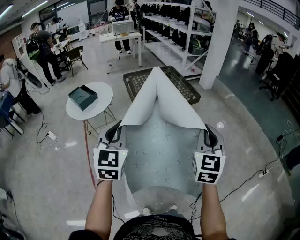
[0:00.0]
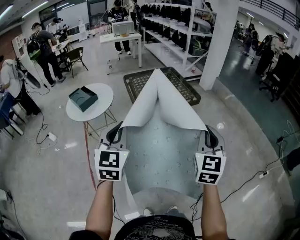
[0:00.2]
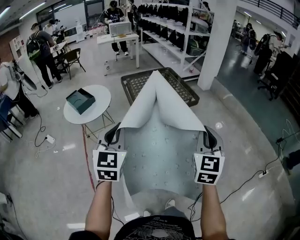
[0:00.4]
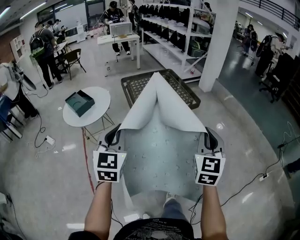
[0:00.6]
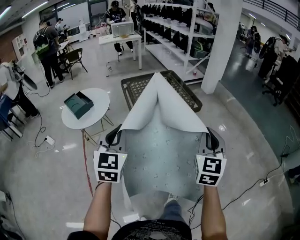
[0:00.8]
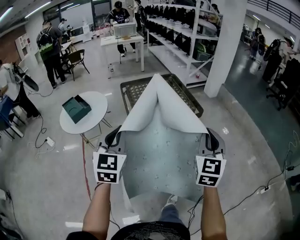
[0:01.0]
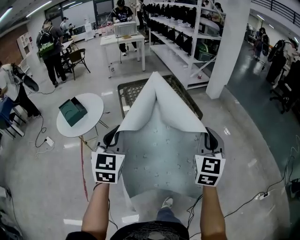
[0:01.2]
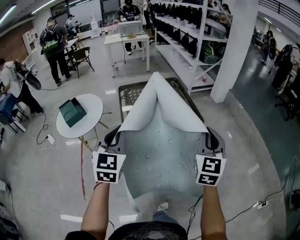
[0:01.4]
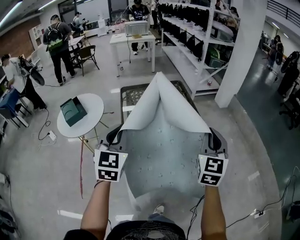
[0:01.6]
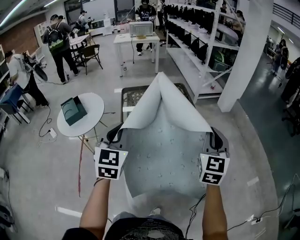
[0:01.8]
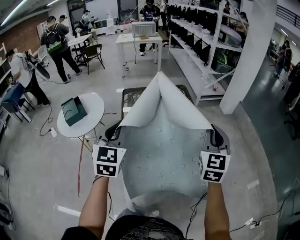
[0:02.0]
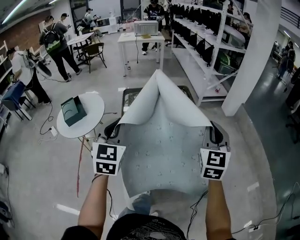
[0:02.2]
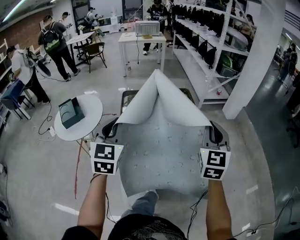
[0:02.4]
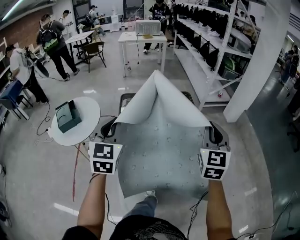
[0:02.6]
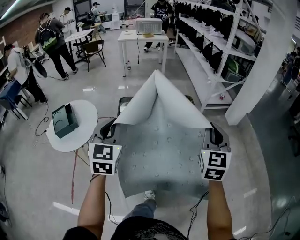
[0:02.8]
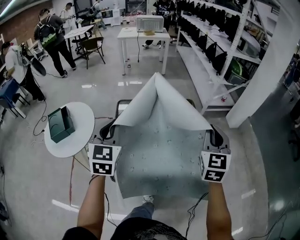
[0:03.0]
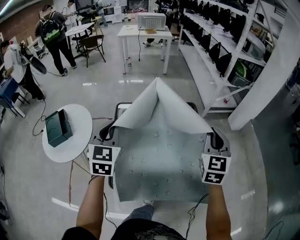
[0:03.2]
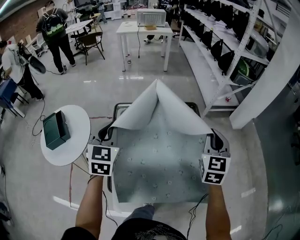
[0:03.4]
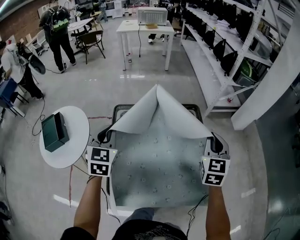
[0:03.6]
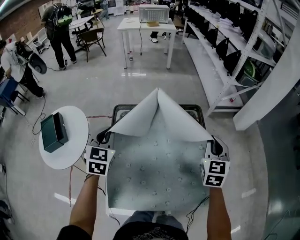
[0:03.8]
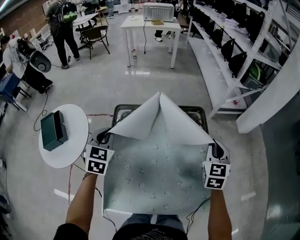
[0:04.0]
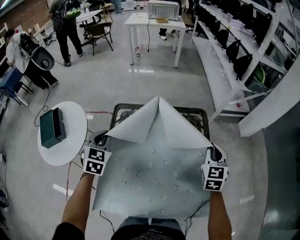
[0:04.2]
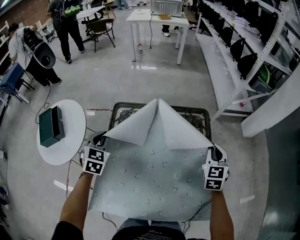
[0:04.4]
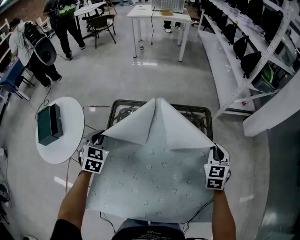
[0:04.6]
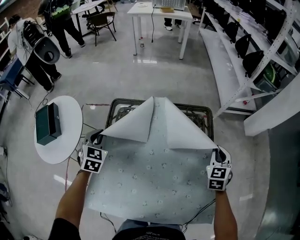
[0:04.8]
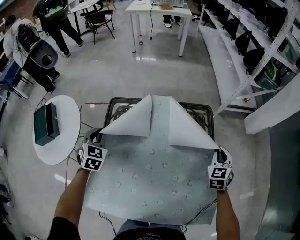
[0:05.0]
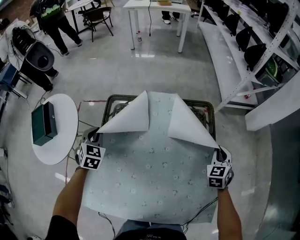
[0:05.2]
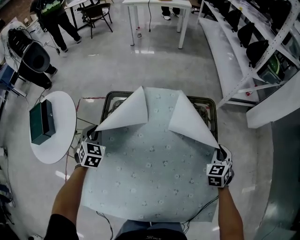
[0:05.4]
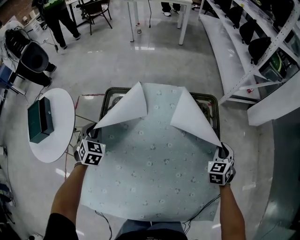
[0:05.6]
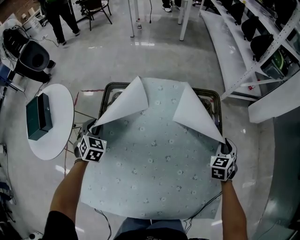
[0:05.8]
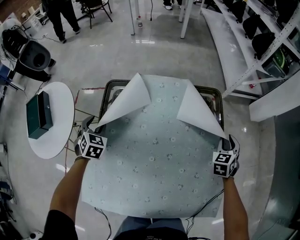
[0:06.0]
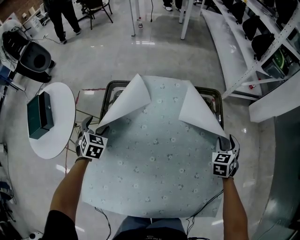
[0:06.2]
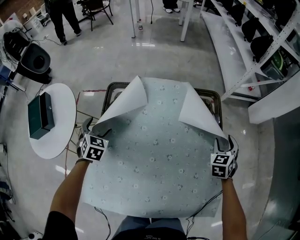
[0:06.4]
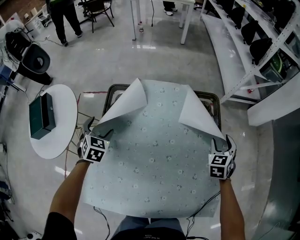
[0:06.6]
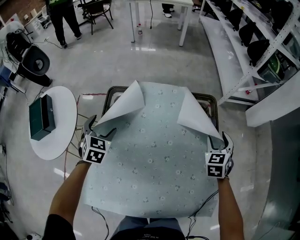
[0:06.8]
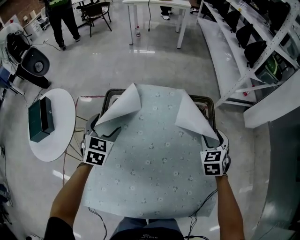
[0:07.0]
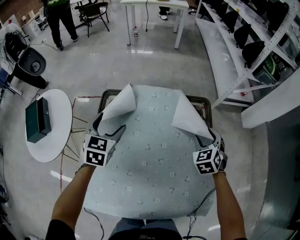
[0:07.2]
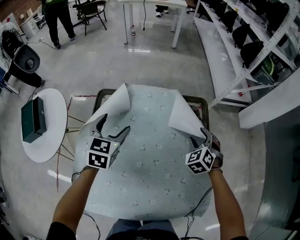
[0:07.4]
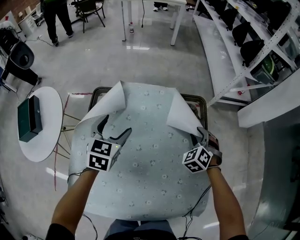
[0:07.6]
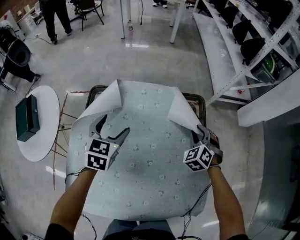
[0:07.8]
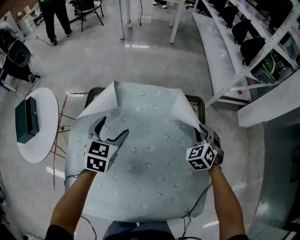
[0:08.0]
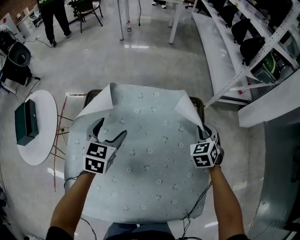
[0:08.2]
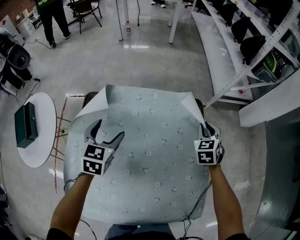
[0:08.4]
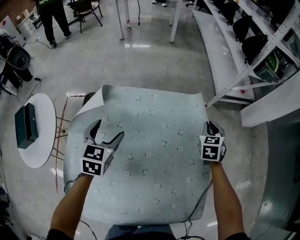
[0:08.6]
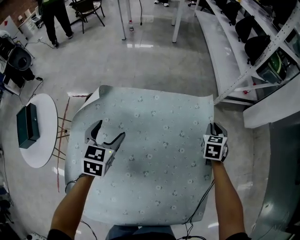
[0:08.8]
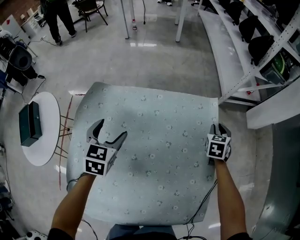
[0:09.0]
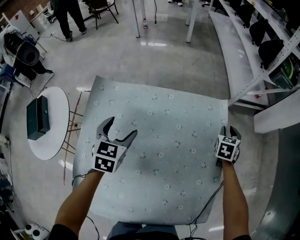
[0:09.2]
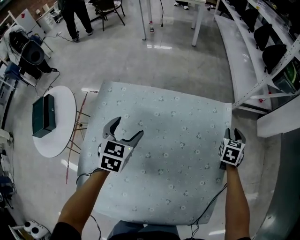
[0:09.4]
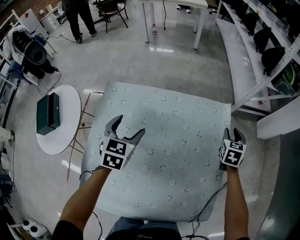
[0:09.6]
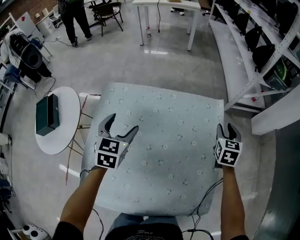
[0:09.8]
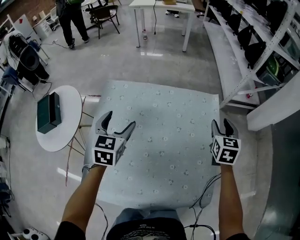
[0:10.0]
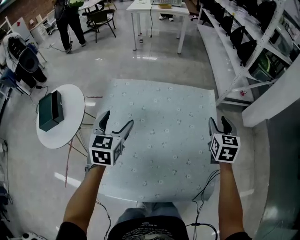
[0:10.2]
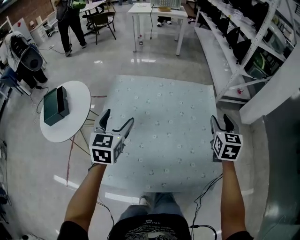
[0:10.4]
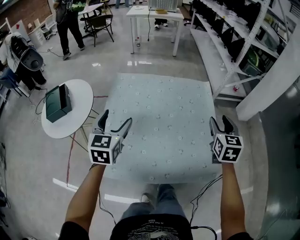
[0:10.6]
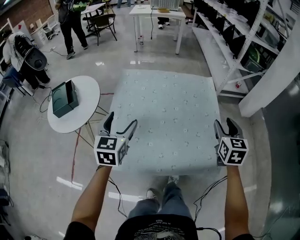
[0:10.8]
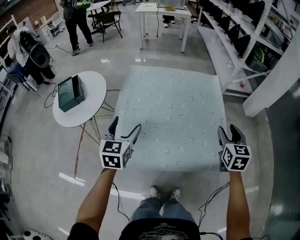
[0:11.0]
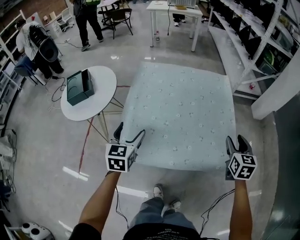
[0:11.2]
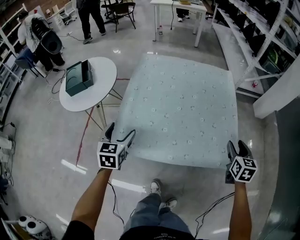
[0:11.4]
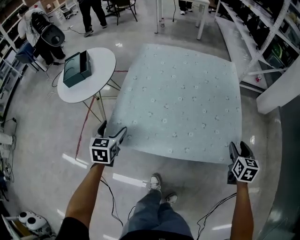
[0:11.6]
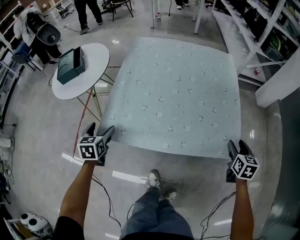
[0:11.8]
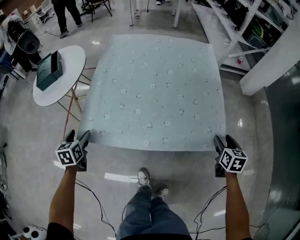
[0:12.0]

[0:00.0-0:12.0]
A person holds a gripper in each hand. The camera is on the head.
0:00.0 to 0:01.6: The grippers both shift forward by roughly 30 cm.
0:01.6 to 0:03.0: The grippers both shift forward by about 35 cm.
0:03.0 to 0:04.4: The left gripper is displaced downward and forward by about 25 cm, and changes its angle by approximately 20 degrees. The right gripper travels forward and downward by some 30 cm.
0:04.4 to 0:06.0: The left gripper shifts some 15 cm downward, and opens up. The right gripper moves downward and to the right, some 15 cm, swivels some 20 degrees, and opens.
0:06.0 to 0:07.6: The right gripper goes some 10 cm to the left, and turns by approximately 30 degrees. Meanwhile the left gripper goes some 20 cm to the right and upward, rotates approximately 30 degrees, and opens its fingers.
0:07.6 to 0:09.0: The right gripper travels forward and to the right by some 15 cm, and twists some 50 degrees clockwise, seen from behind.
0:09.0 to 0:10.4: Both grippers move backward and upward, some 30 cm. The right gripper changes its angle by roughly 20 degrees, and opens its fingers.
0:10.4 to 0:12.0: The right gripper heads backward and downward, covering approximately 35 cm, and turns by roughly 20 degrees. The left gripper heads backward, downward and to the left, covering approximately 40 cm, and changes its angle by some 30 degrees.

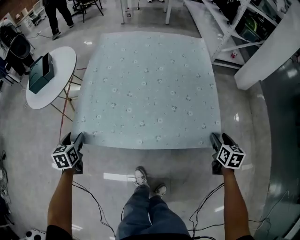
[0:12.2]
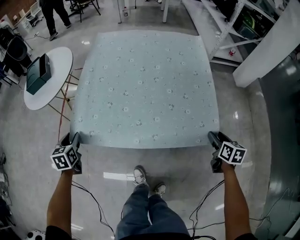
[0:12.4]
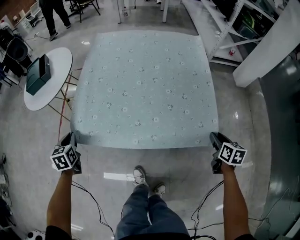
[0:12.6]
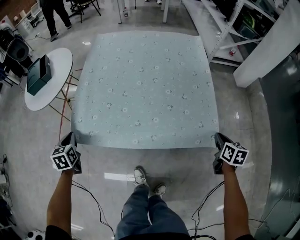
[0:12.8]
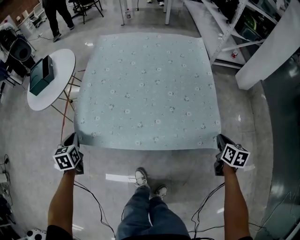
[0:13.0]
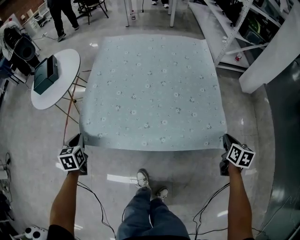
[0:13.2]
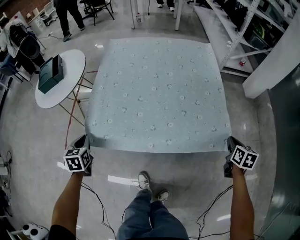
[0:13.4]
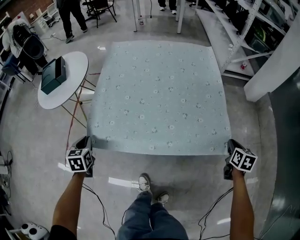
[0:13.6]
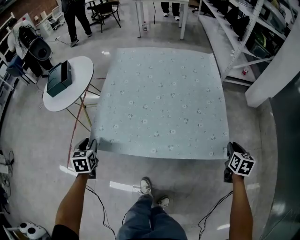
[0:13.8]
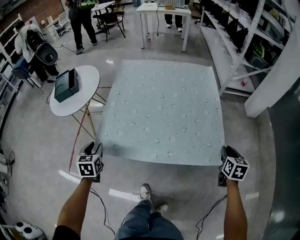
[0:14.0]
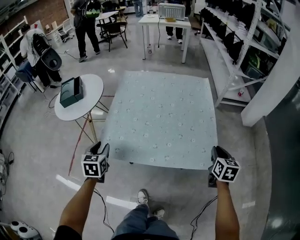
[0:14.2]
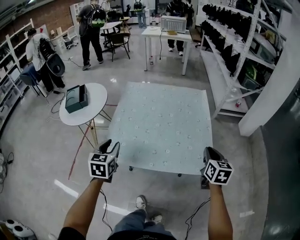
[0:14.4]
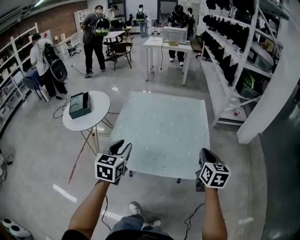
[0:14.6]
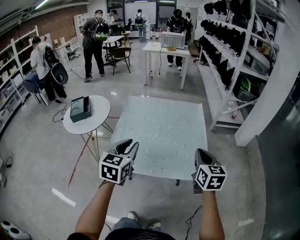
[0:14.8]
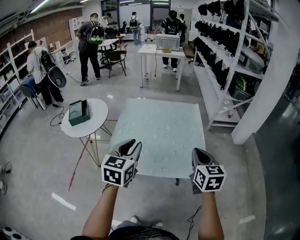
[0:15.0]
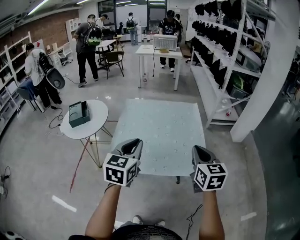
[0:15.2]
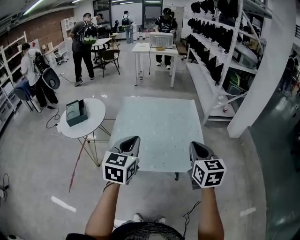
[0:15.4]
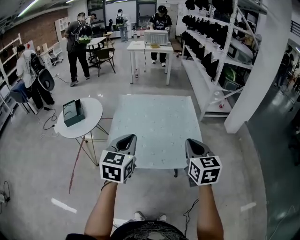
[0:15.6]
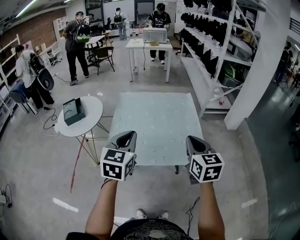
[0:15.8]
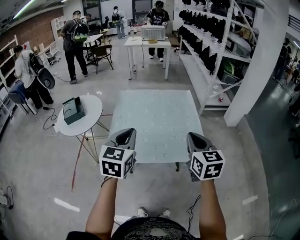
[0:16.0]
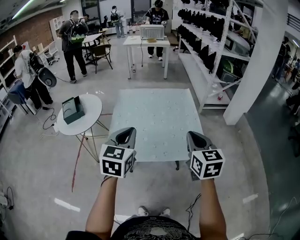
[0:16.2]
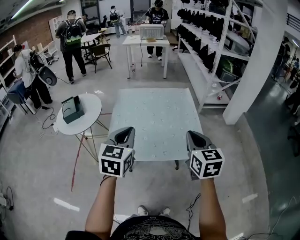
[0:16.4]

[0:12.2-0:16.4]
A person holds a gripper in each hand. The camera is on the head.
0:12.2 to 0:13.6: The right gripper shifts by some 5 cm, and closes up. The left gripper closes.
0:13.6 to 0:15.0: The left gripper heads upward and to the right, covering roughly 40 cm, and swivels approximately 40 degrees; the right gripper shifts about 40 cm upward and to the left, and rotates some 30 degrees.
0:15.0 to 0:16.4: The right gripper goes about 10 cm backward and to the left; the left gripper moves about 5 cm.

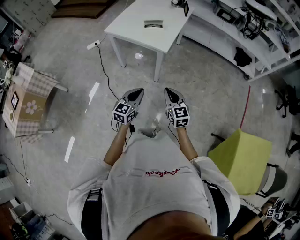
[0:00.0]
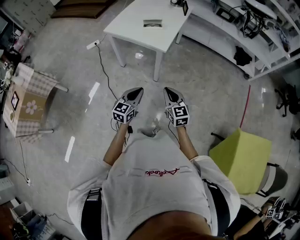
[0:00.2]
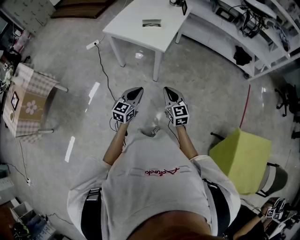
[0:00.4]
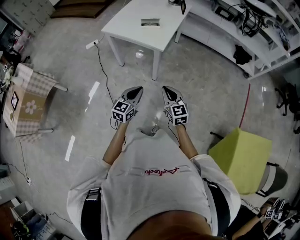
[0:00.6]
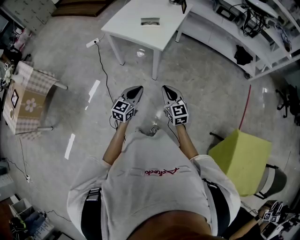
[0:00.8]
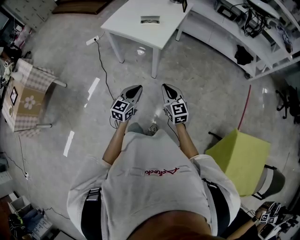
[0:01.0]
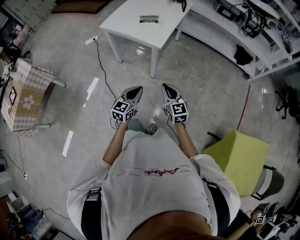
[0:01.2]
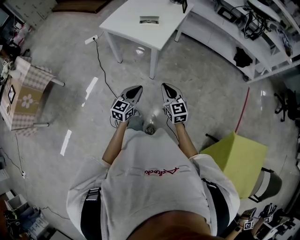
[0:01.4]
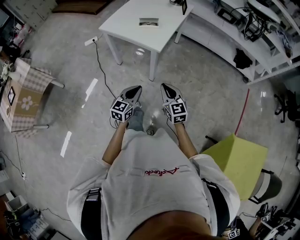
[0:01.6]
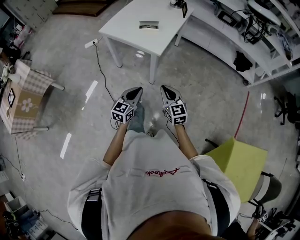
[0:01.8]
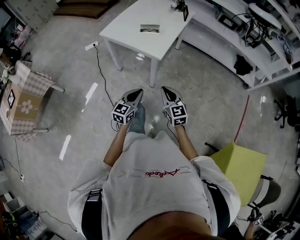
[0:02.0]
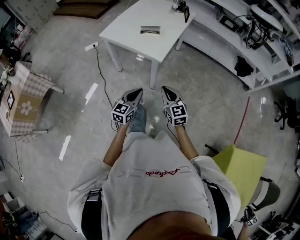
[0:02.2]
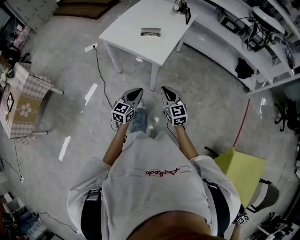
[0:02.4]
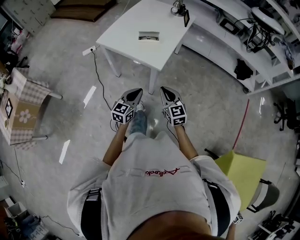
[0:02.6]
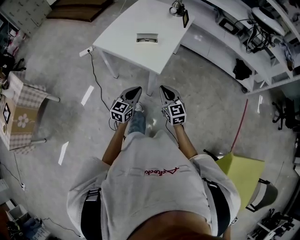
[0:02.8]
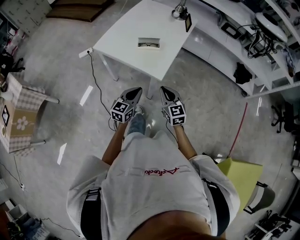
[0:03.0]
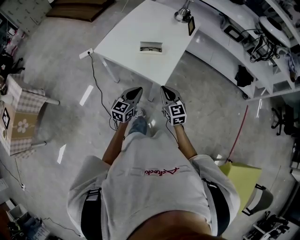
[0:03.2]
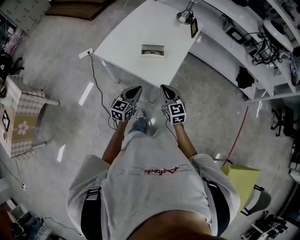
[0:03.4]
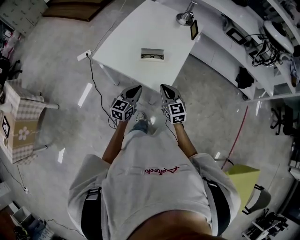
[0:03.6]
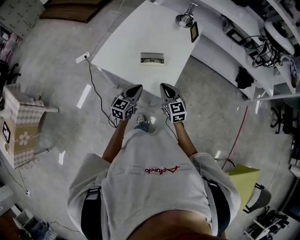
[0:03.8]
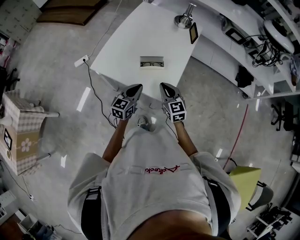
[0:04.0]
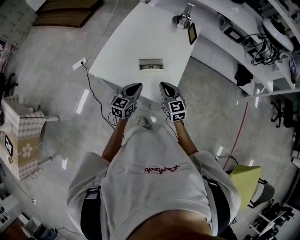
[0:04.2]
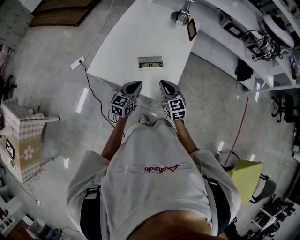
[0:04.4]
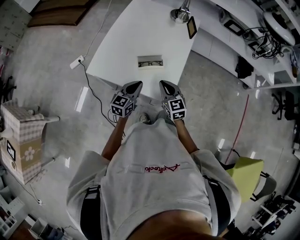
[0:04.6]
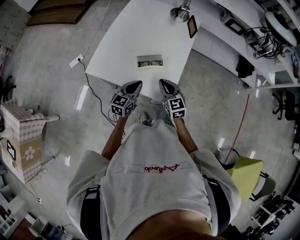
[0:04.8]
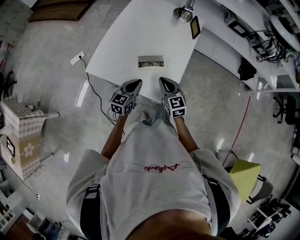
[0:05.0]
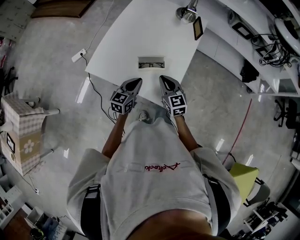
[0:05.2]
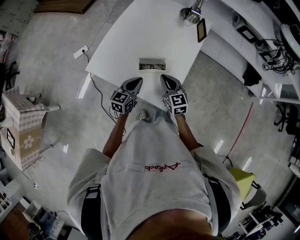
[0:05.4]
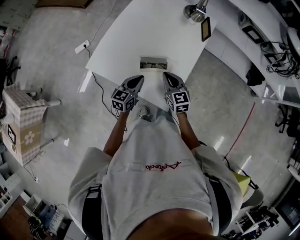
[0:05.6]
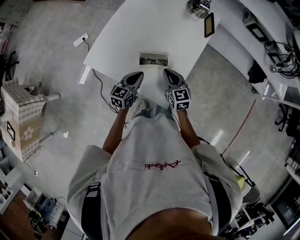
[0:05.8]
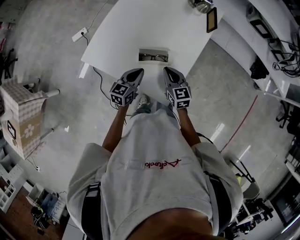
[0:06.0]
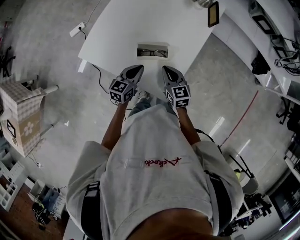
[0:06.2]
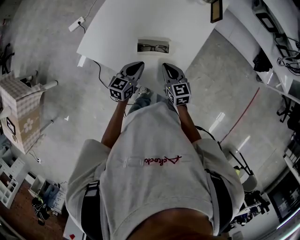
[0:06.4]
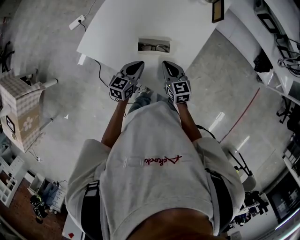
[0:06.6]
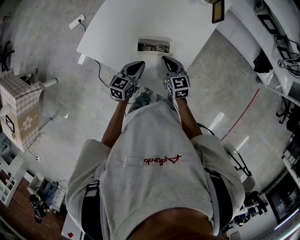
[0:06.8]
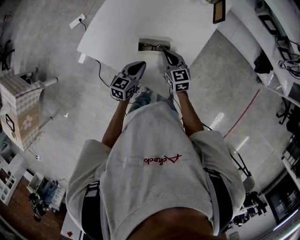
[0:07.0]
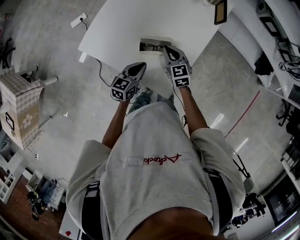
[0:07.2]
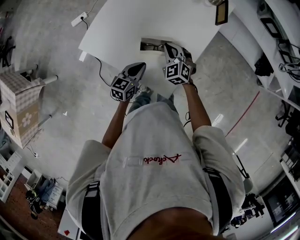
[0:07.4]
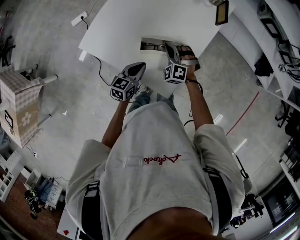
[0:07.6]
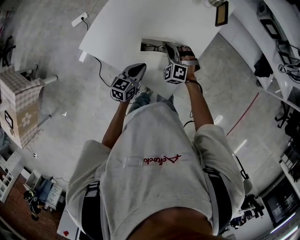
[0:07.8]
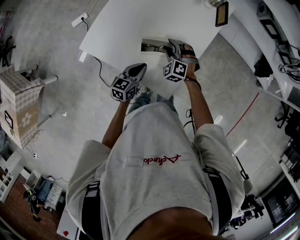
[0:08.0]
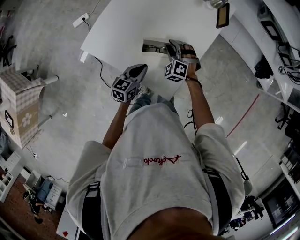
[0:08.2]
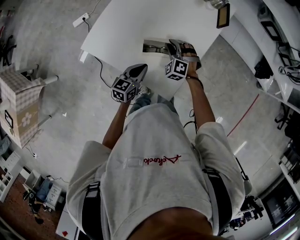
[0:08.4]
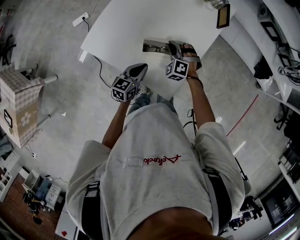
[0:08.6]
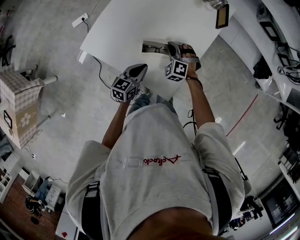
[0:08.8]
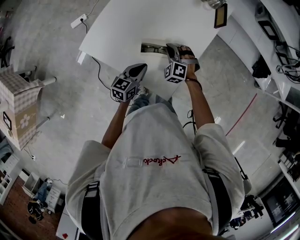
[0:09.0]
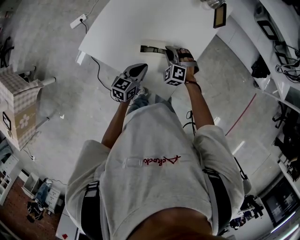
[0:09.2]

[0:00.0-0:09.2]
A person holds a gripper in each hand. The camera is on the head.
0:00.0 to 0:01.6: The left gripper changes place by roughly 5 cm. Meanwhile the right gripper ends up roughly 5 cm from where it was.
0:01.6 to 0:03.0: The two grippers go some 20 cm forward.
0:03.0 to 0:04.6: Both grippers travel together forward, some 20 cm.
0:04.6 to 0:06.2: Both grippers move downward and forward, some 10 cm.
0:06.2 to 0:07.6: The right gripper goes about 10 cm forward, and rolls counterclockwise, seen from behind, by roughly 70 degrees.
0:07.6 to 0:09.2: The right gripper opens and closes again.
